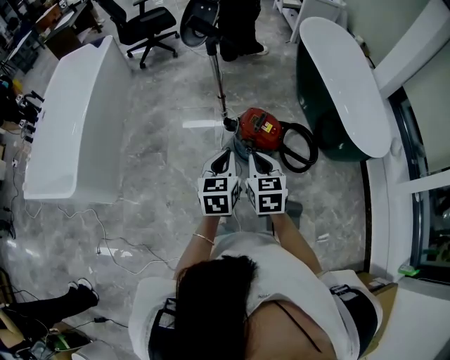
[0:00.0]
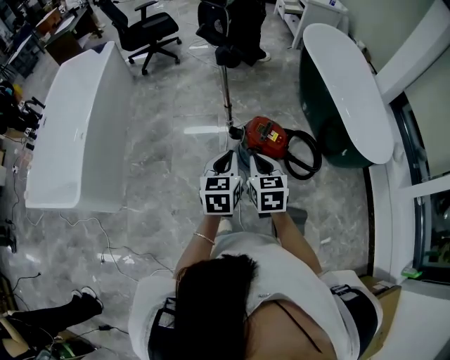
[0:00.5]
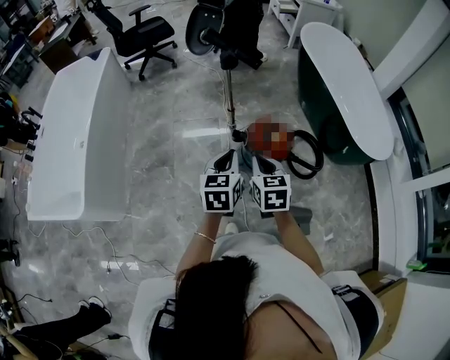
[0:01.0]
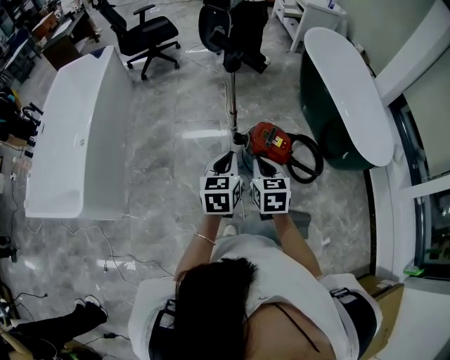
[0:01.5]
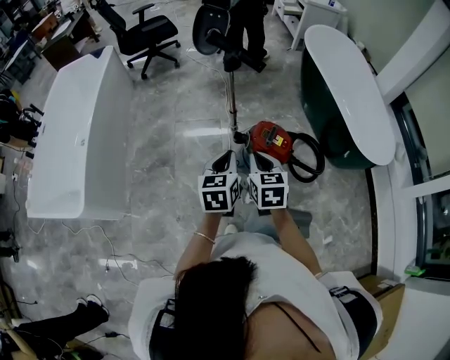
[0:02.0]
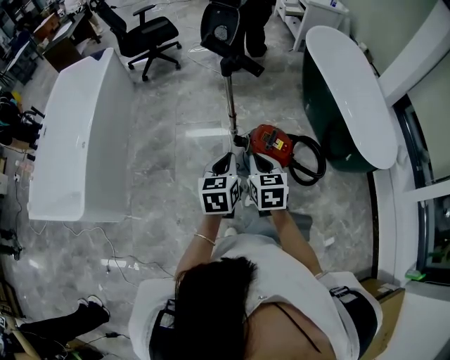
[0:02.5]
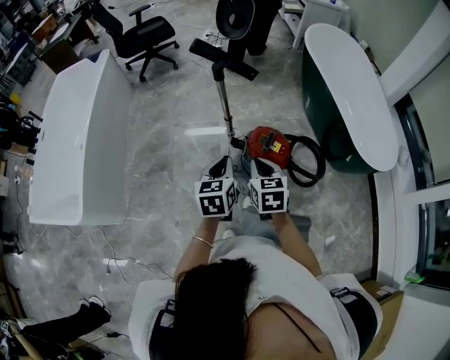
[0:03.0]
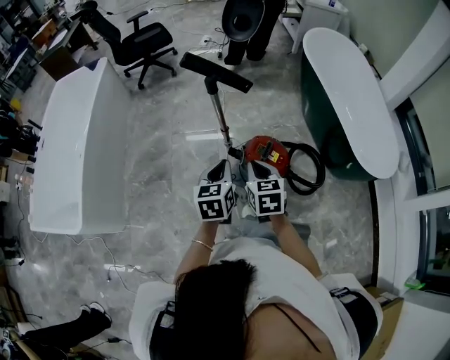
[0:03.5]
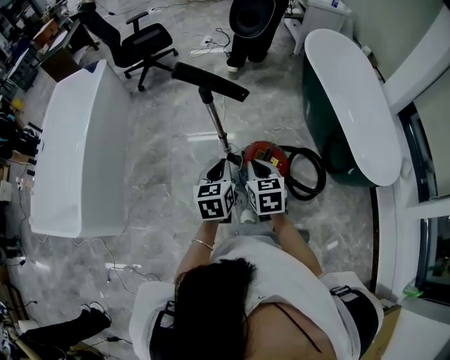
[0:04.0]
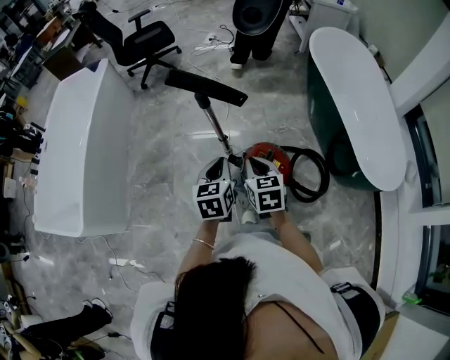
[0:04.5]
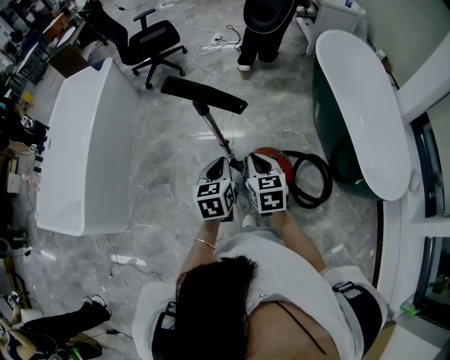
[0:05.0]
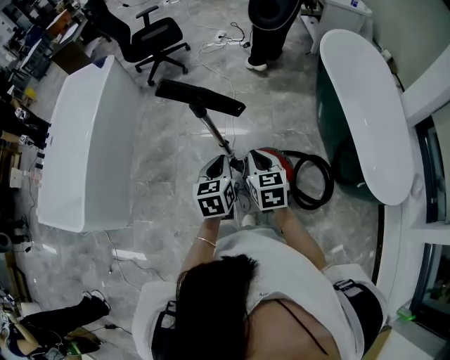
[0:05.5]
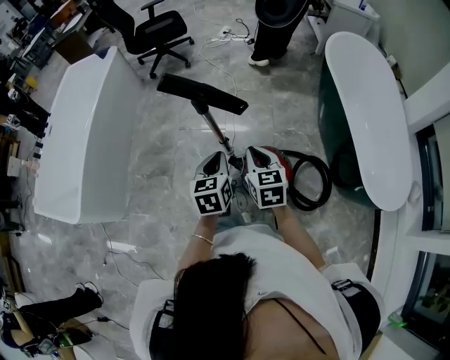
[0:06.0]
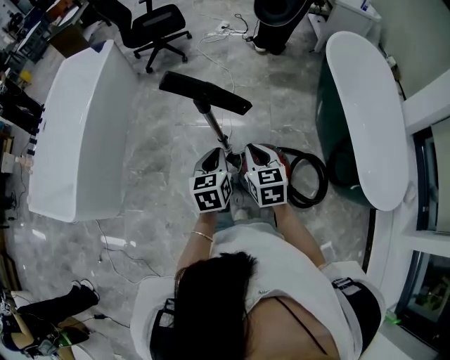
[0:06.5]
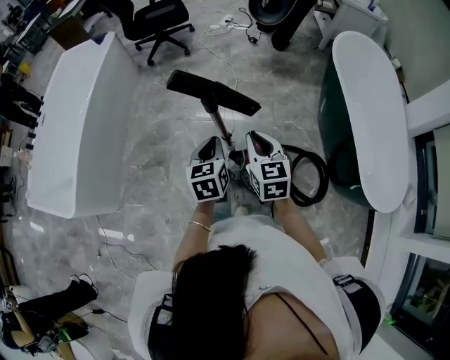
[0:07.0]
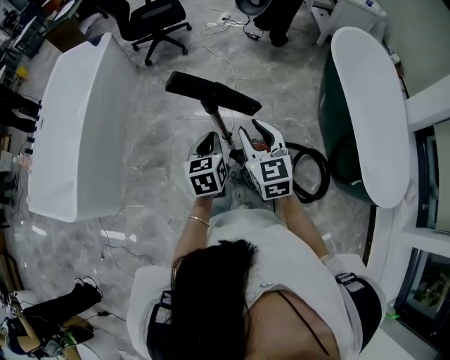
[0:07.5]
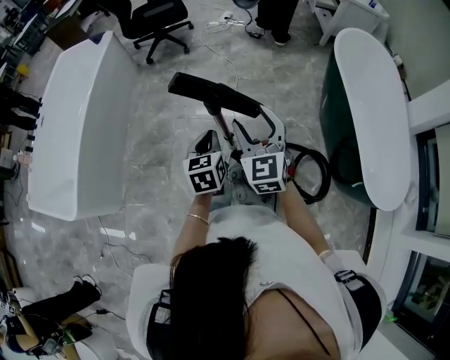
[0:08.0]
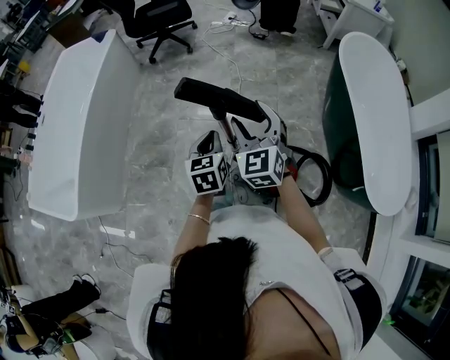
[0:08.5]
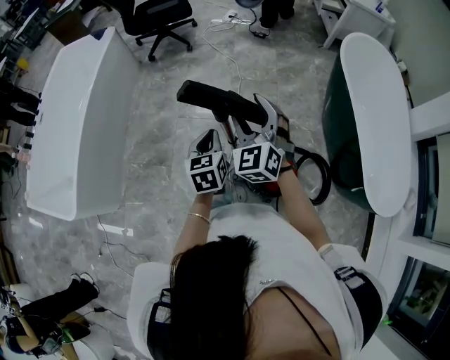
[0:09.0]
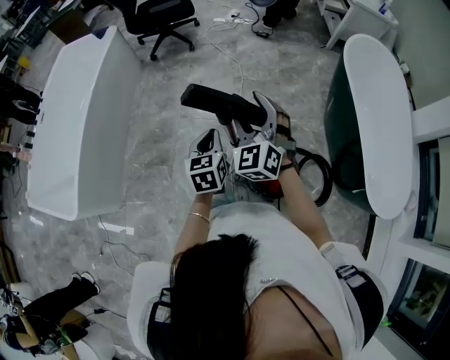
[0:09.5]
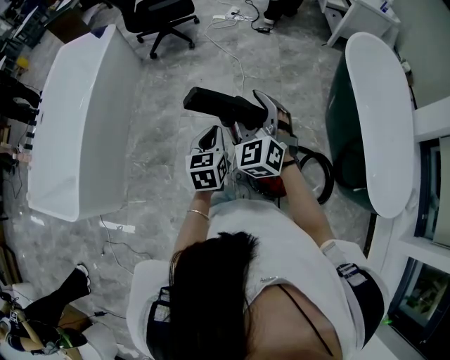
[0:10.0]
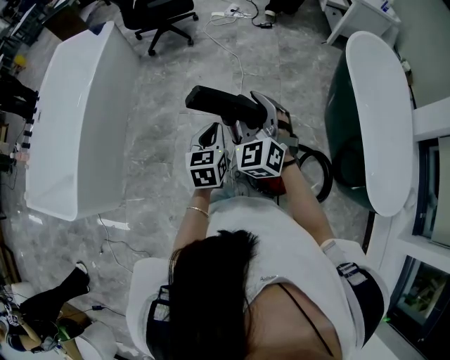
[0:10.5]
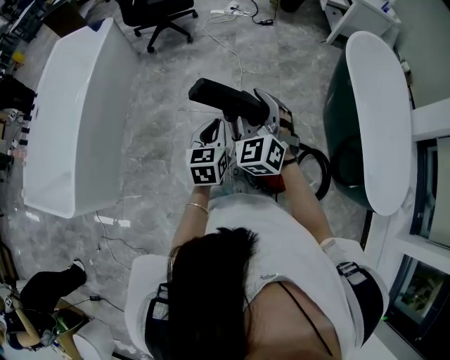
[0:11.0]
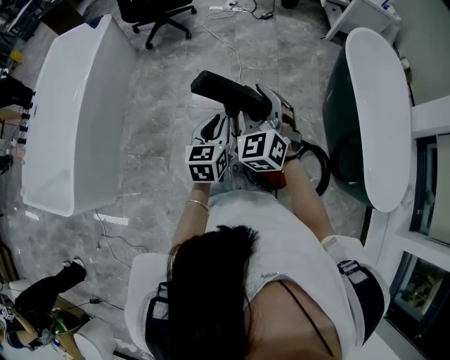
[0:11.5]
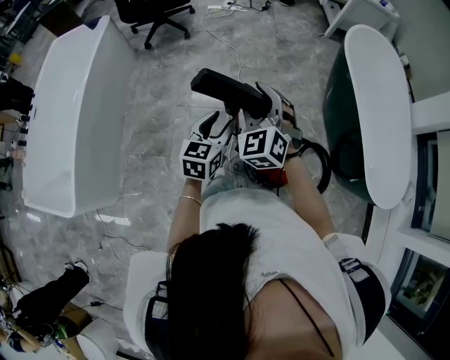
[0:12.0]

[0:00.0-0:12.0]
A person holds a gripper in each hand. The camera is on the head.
0:00.0 to 0:02.0: The grippers both shift to the left and forward by roughly 10 cm.
0:02.0 to 0:04.0: The grippers both shift forward and to the right by about 15 cm.
0:04.0 to 0:06.0: The two grippers go about 10 cm forward.
0:06.0 to 0:08.0: The right gripper heads forward and upward, covering approximately 10 cm, rotates some 30 degrees, and opens its fingers, while the left gripper moves forward and to the left, roughly 10 cm.
0:08.0 to 0:10.0: The right gripper goes some 10 cm forward, and changes its angle by approximately 20 degrees, while the left gripper goes approximately 5 cm forward.
0:10.0 to 0:12.0: The left gripper opens up.

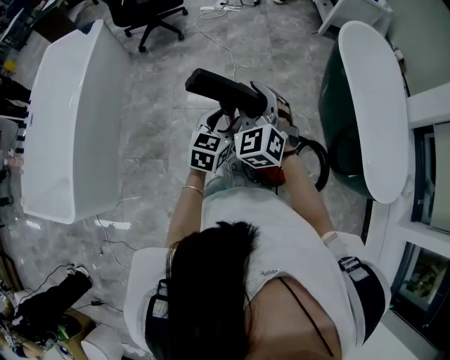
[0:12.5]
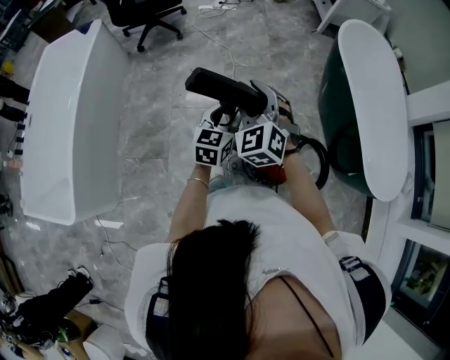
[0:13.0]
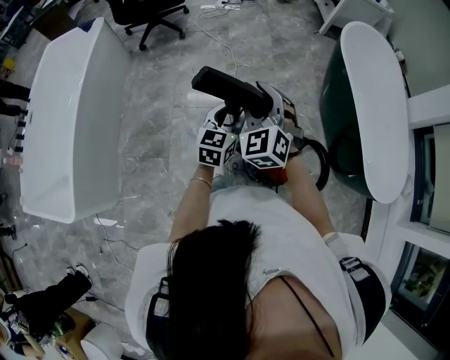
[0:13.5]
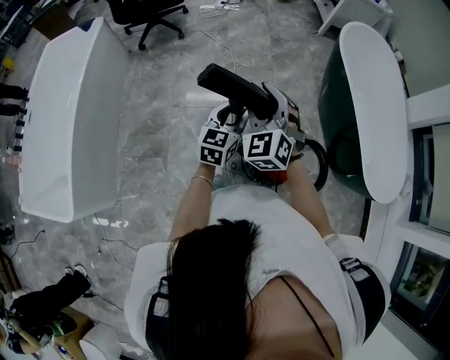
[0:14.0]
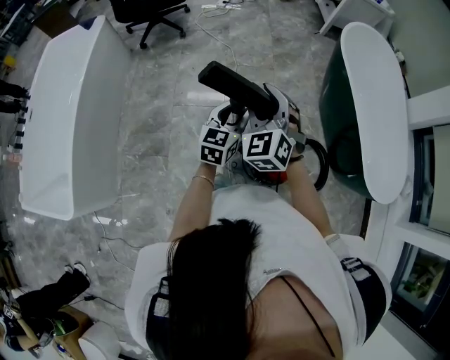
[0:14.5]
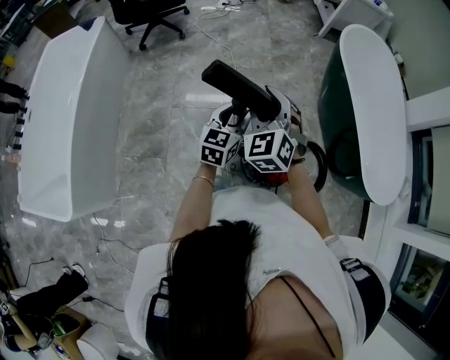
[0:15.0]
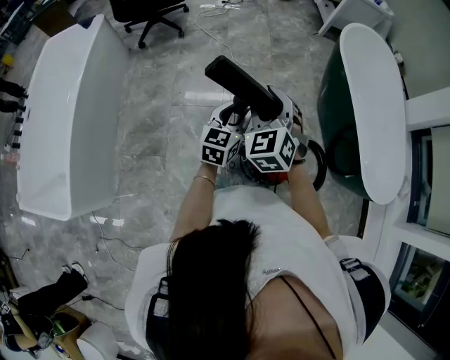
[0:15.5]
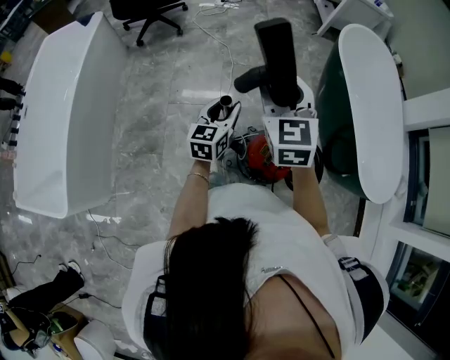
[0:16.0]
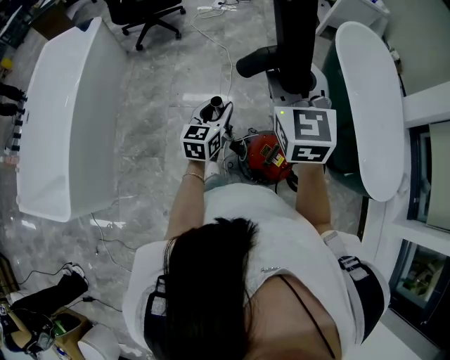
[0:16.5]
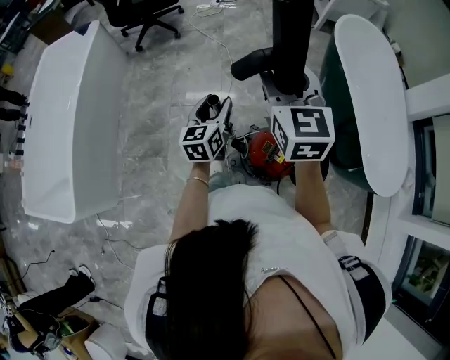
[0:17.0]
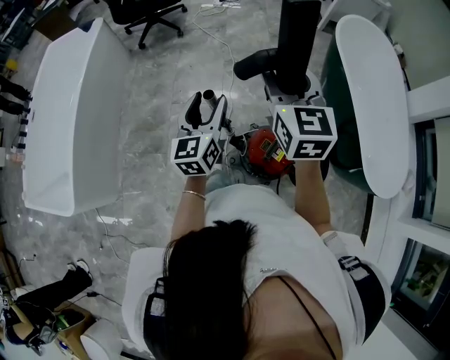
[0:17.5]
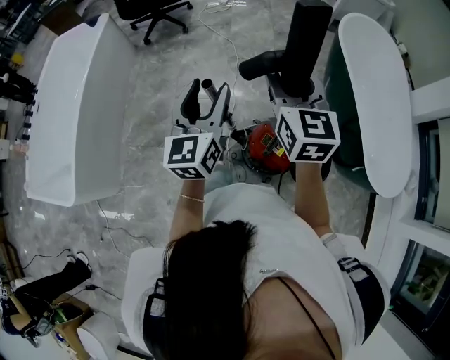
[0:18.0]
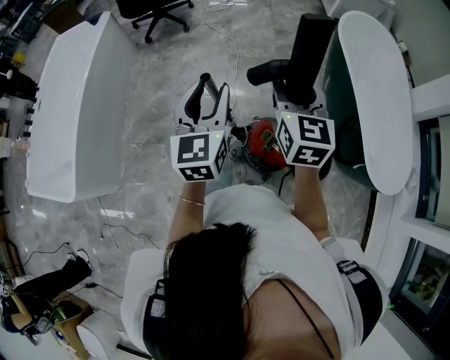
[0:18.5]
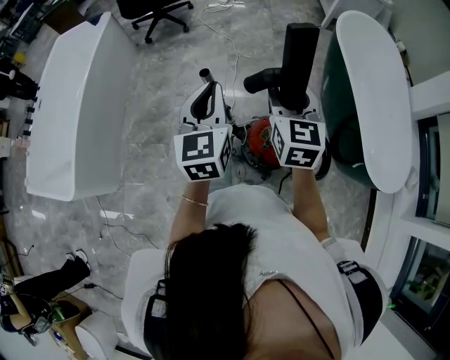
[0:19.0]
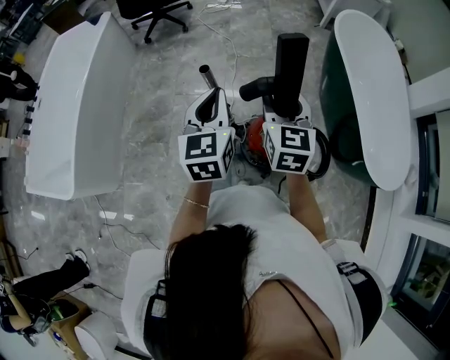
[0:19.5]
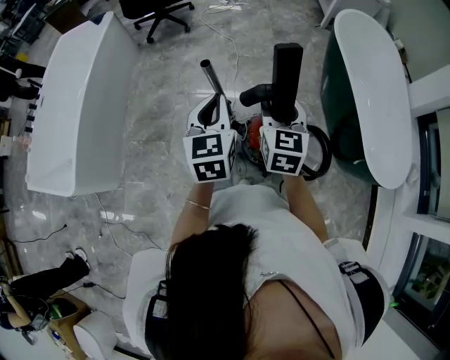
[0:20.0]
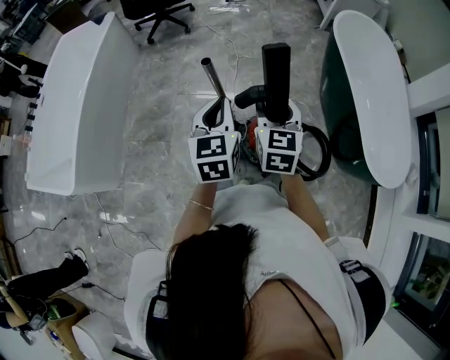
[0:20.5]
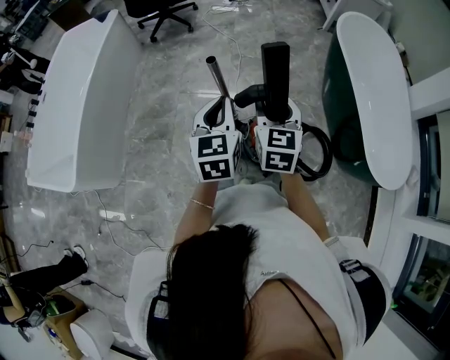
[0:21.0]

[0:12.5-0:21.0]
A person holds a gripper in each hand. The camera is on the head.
0:12.5 to 0:14.5: The grippers move only a little.
0:14.5 to 0:16.5: The right gripper goes approximately 15 cm upward, and rotates about 30 degrees.
0:16.5 to 0:19.0: The right gripper goes roughly 15 cm backward, downward and to the right; the left gripper travels upward and backward by roughly 20 cm, rotates approximately 20 degrees, and closes up.
0:19.0 to 0:21.0: The left gripper goes about 5 cm backward. Meanwhile the right gripper is displaced backward and downward by some 10 cm.

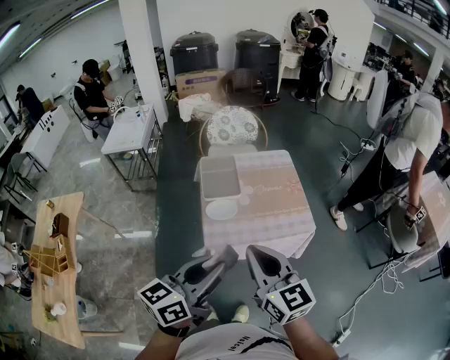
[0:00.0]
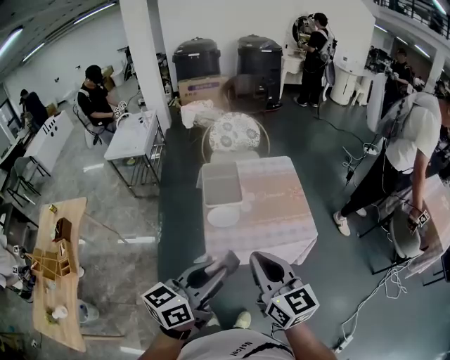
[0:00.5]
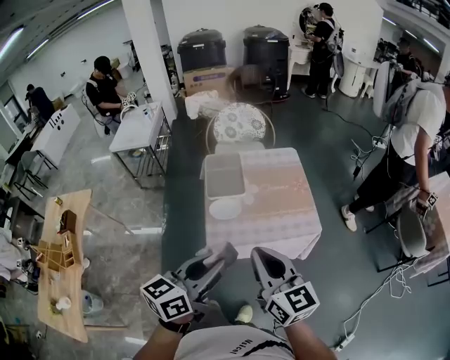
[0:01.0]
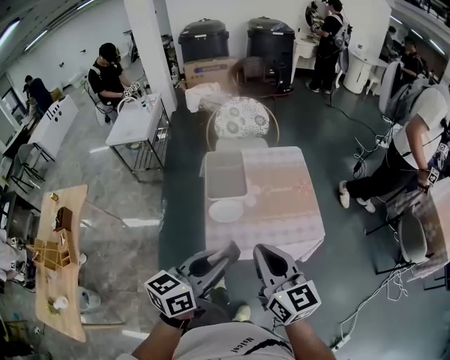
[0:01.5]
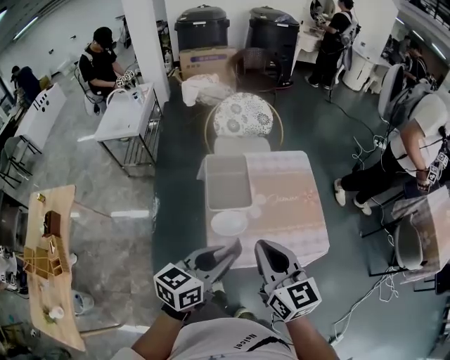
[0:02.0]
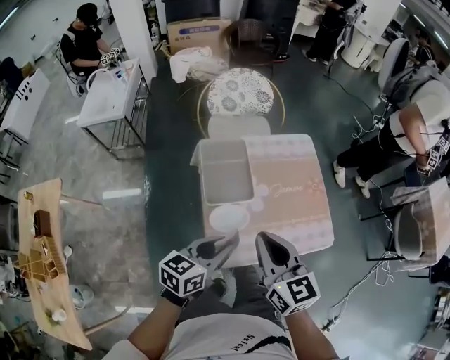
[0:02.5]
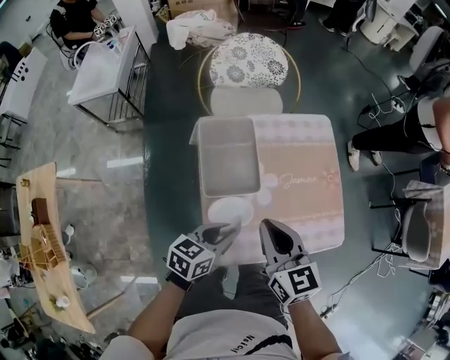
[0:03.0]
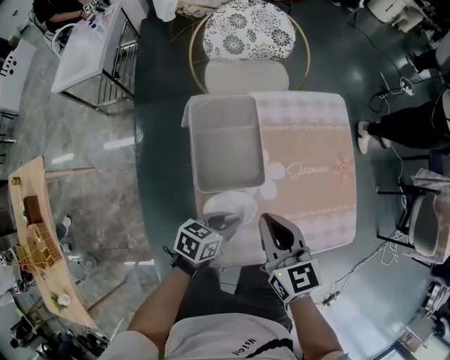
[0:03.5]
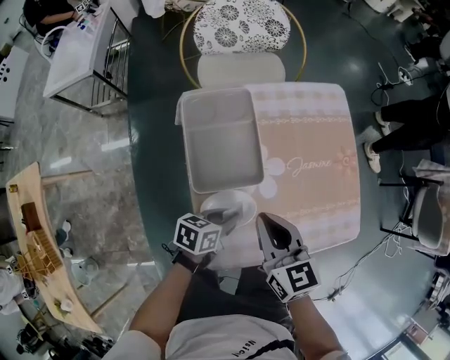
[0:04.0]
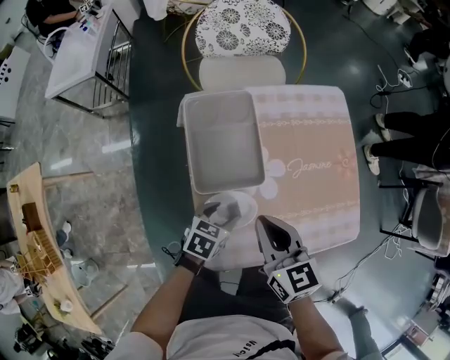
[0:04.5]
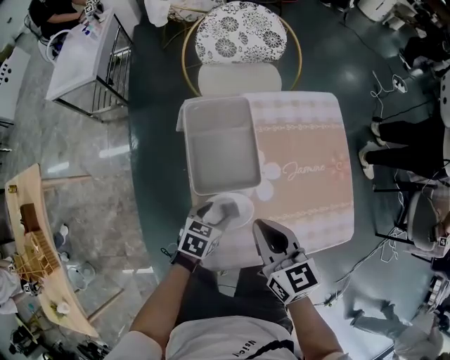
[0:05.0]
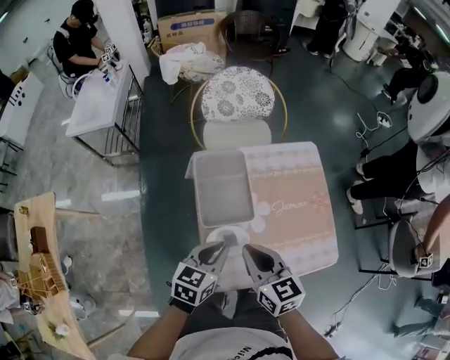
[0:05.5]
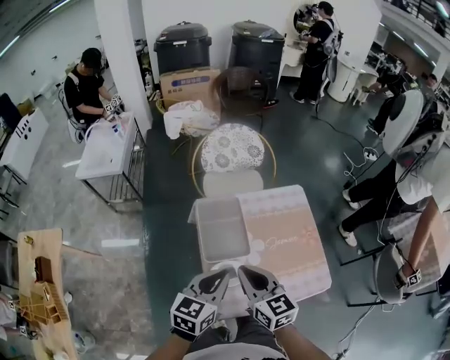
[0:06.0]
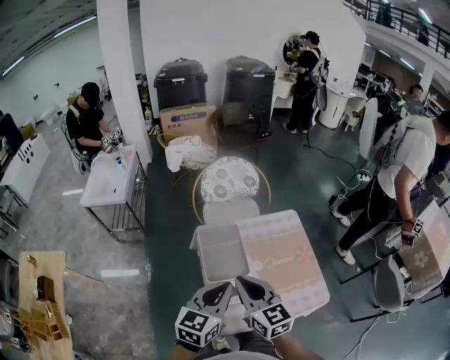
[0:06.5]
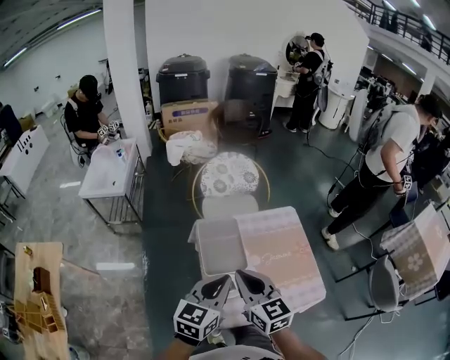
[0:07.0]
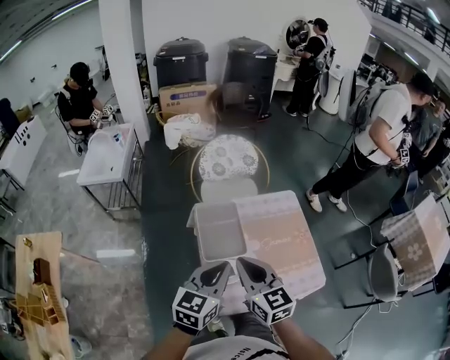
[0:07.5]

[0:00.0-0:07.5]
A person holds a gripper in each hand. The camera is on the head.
0:00.0 to 0:02.0: The right gripper goes some 20 cm forward. The left gripper shifts roughly 20 cm forward and downward.
0:02.0 to 0:04.0: Both grippers move downward and forward, roughly 35 cm. The left gripper changes its angle by about 40 degrees.
0:04.0 to 0:05.5: The left gripper moves upward, approximately 20 cm, changes its angle by approximately 30 degrees, and opens and closes again; the right gripper moves upward, roughly 10 cm.
0:05.5 to 0:07.5: The two grippers go approximately 15 cm upward. The left gripper rotates approximately 20 degrees.
